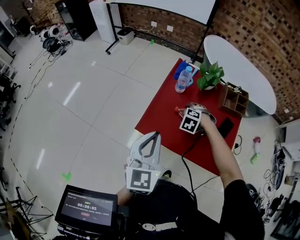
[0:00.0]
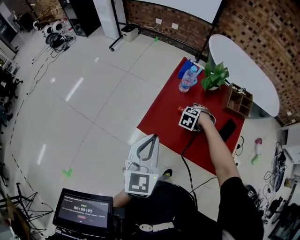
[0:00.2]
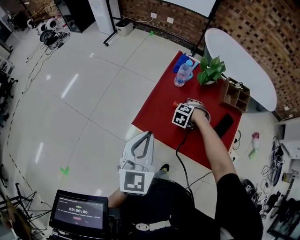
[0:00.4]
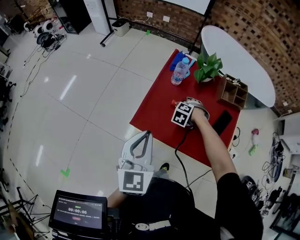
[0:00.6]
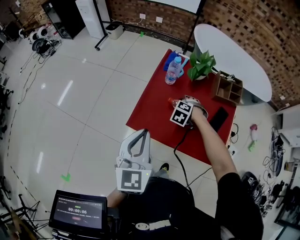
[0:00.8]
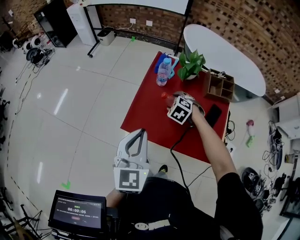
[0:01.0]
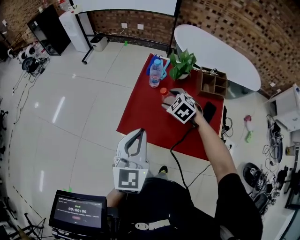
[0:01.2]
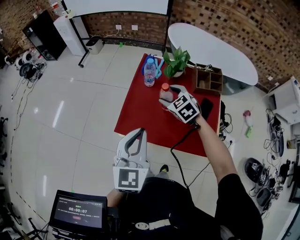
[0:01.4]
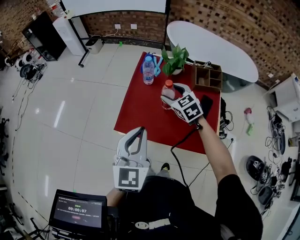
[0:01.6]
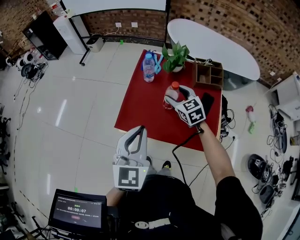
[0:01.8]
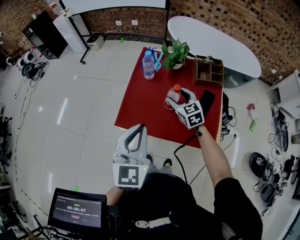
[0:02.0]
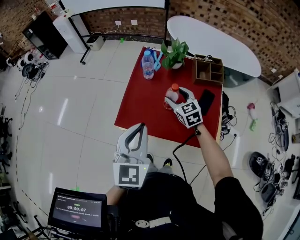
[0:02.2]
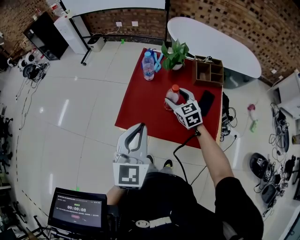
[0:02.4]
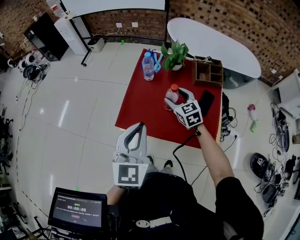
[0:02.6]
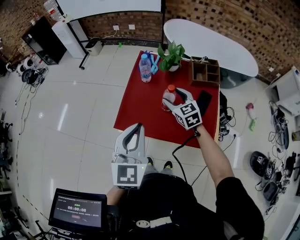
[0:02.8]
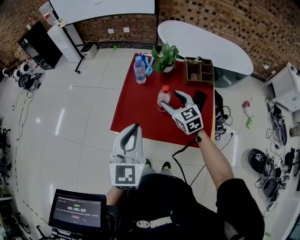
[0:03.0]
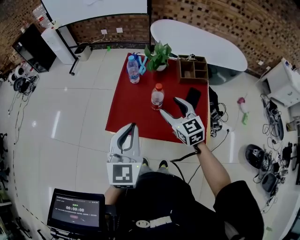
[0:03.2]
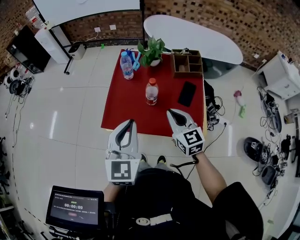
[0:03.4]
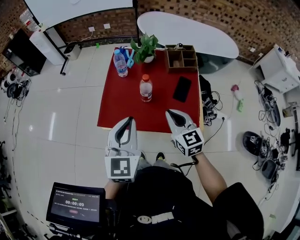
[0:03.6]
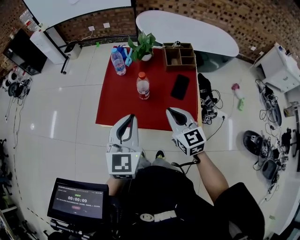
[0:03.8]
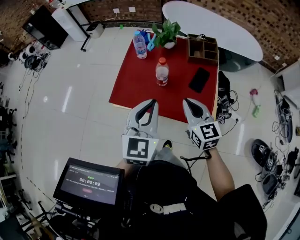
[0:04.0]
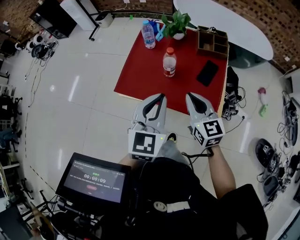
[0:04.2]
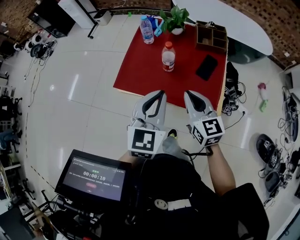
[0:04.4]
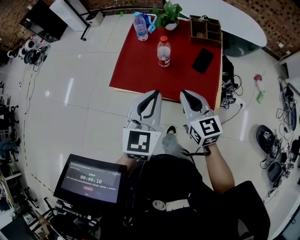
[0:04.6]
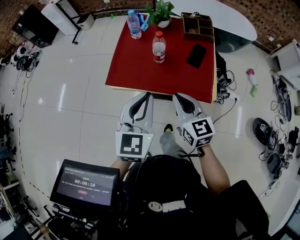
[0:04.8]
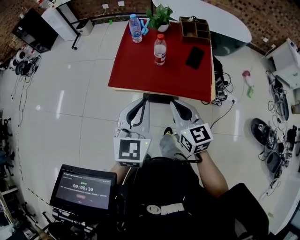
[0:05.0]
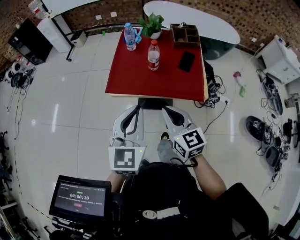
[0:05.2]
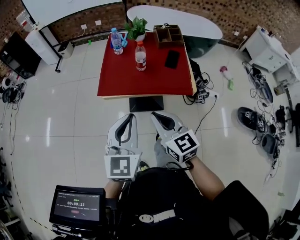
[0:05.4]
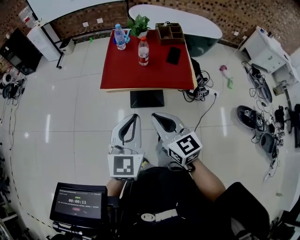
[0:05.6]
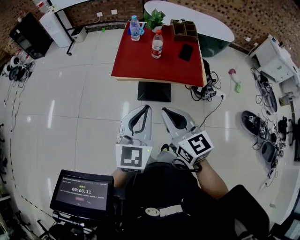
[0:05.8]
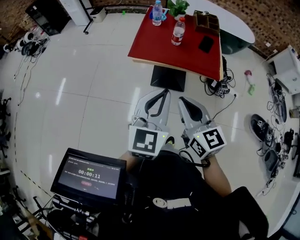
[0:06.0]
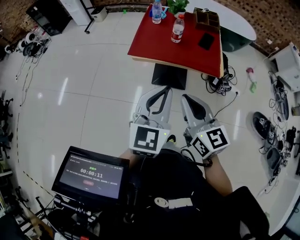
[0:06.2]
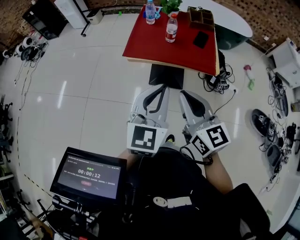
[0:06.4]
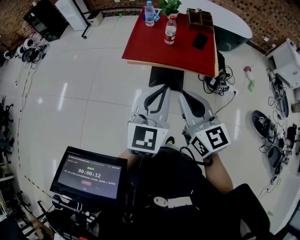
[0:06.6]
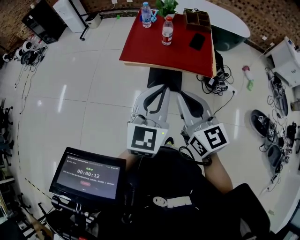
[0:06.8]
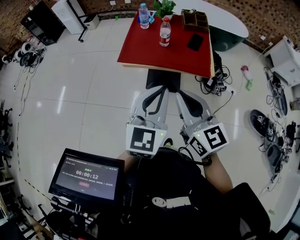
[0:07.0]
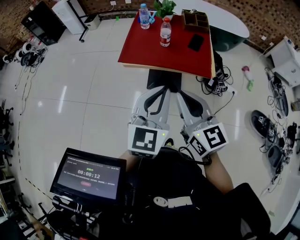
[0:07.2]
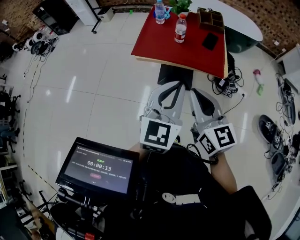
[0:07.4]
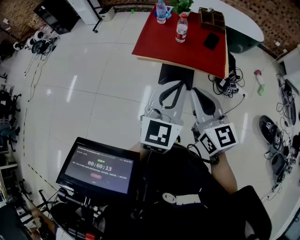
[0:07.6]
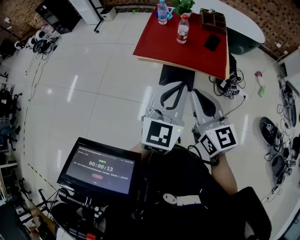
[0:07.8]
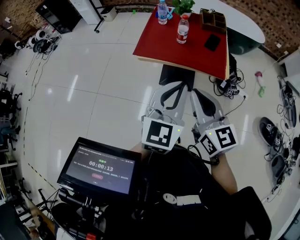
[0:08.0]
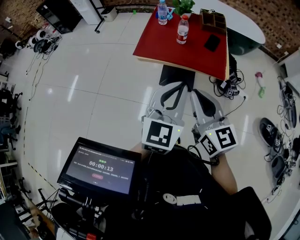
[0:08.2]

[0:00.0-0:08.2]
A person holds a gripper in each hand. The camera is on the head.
0.0 to 1.6 s: The right gripper goes approximately 15 cm upward, and angles its fingers upward, by approximately 40 degrees. Meanwhile the left gripper ends up some 5 cm from where it was.
1.6 to 3.2 s: The right gripper is displaced backward by approximately 10 cm, and changes its angle by about 20 degrees.
3.2 to 5.0 s: The left gripper heads backward, covering some 15 cm, while the right gripper shifts some 20 cm backward, and closes.
5.0 to 6.6 s: The right gripper moves backward and upward, some 20 cm. The left gripper goes about 15 cm backward.
6.6 to 8.2 s: There are only small adjustments of the grippers.

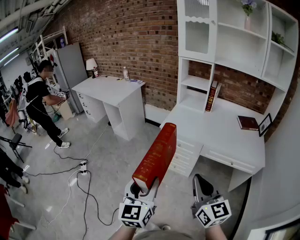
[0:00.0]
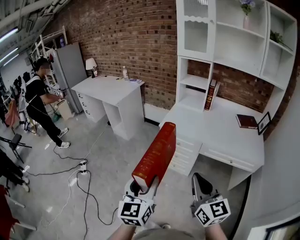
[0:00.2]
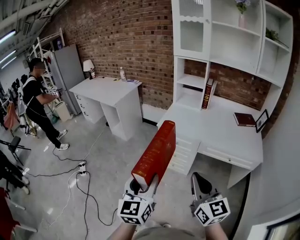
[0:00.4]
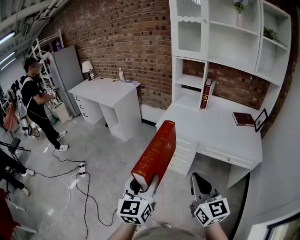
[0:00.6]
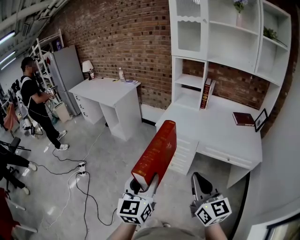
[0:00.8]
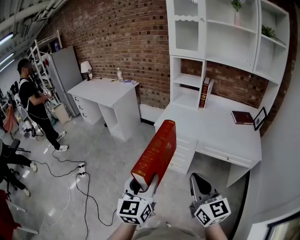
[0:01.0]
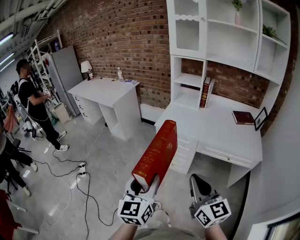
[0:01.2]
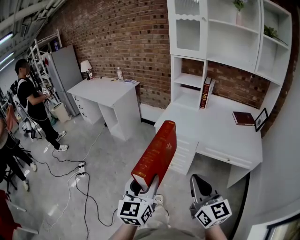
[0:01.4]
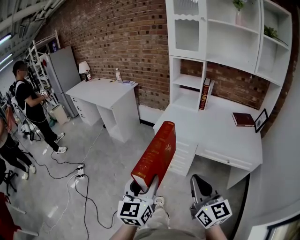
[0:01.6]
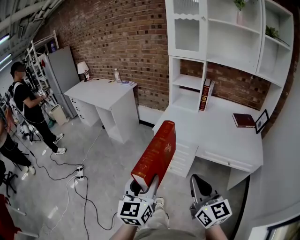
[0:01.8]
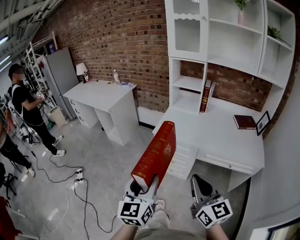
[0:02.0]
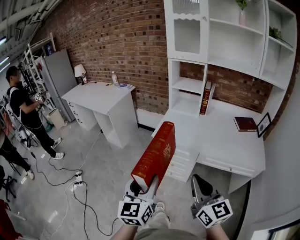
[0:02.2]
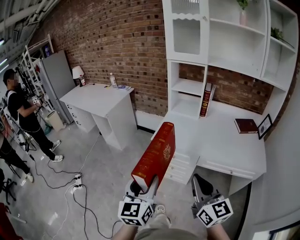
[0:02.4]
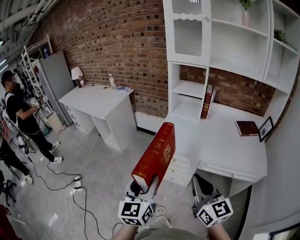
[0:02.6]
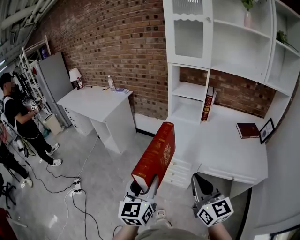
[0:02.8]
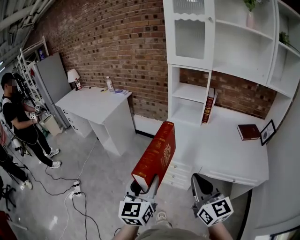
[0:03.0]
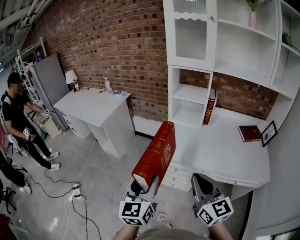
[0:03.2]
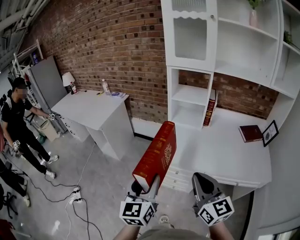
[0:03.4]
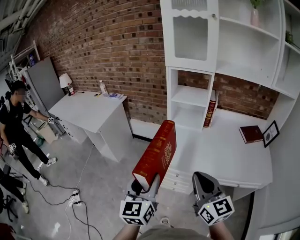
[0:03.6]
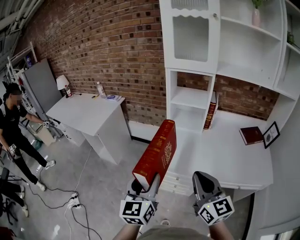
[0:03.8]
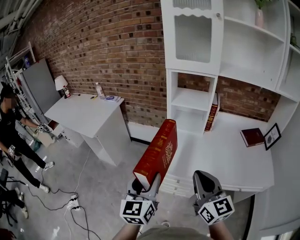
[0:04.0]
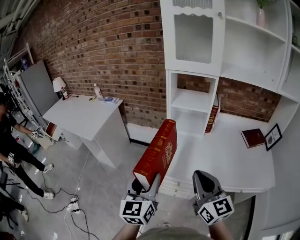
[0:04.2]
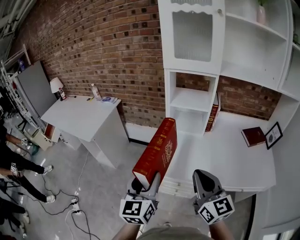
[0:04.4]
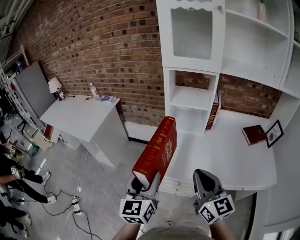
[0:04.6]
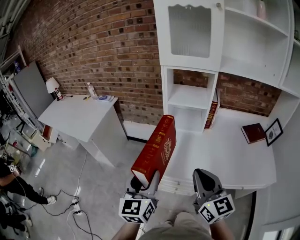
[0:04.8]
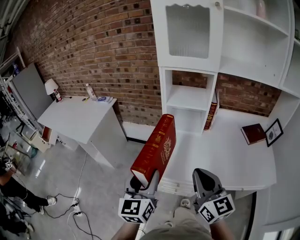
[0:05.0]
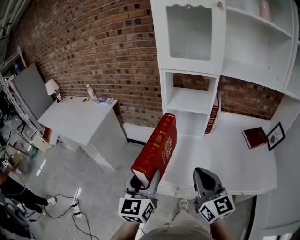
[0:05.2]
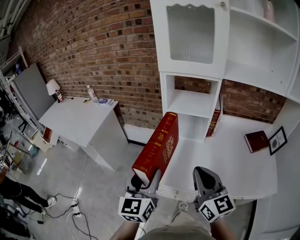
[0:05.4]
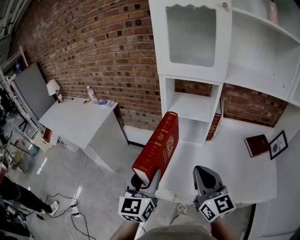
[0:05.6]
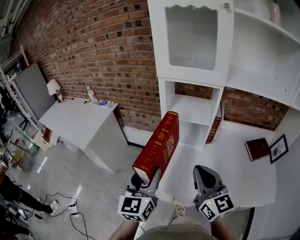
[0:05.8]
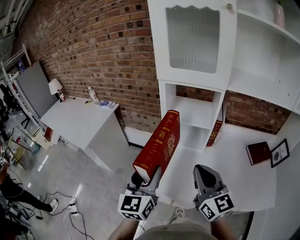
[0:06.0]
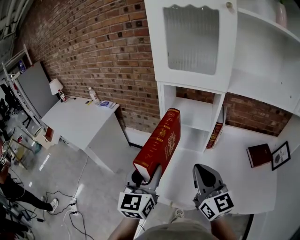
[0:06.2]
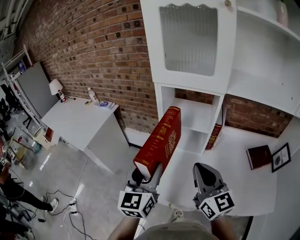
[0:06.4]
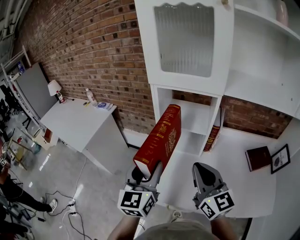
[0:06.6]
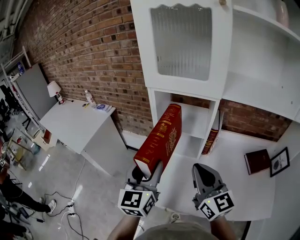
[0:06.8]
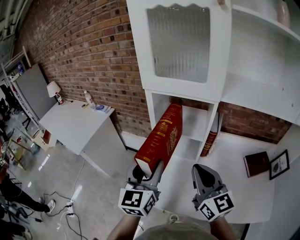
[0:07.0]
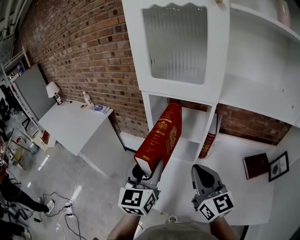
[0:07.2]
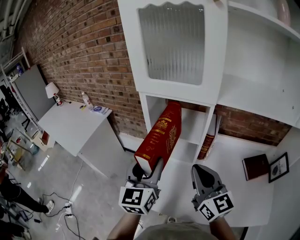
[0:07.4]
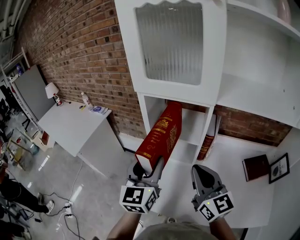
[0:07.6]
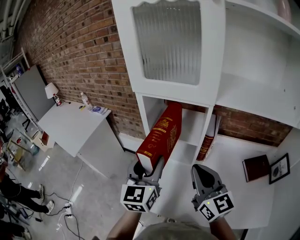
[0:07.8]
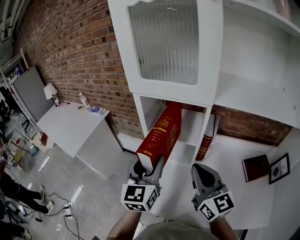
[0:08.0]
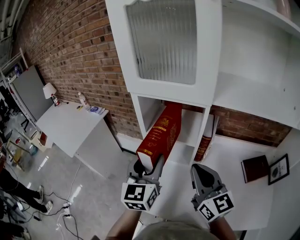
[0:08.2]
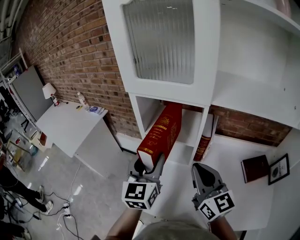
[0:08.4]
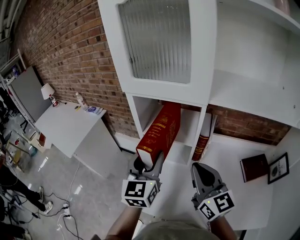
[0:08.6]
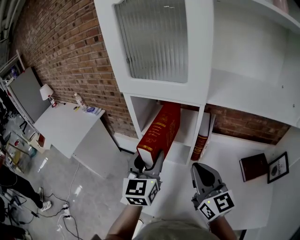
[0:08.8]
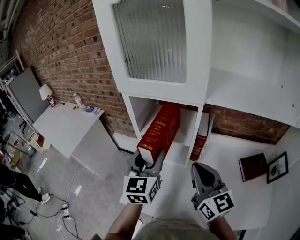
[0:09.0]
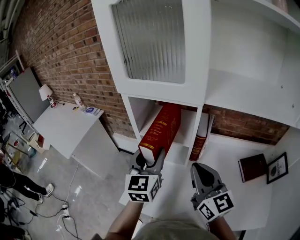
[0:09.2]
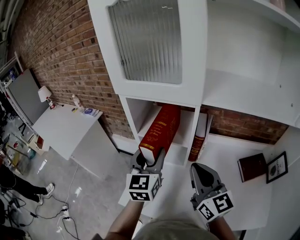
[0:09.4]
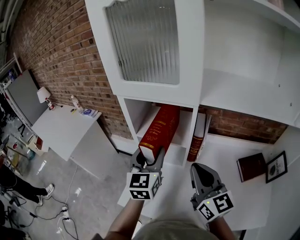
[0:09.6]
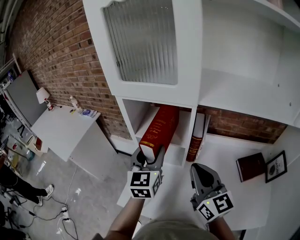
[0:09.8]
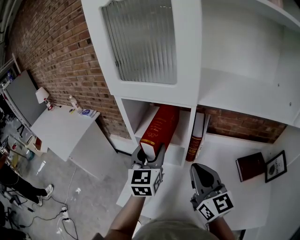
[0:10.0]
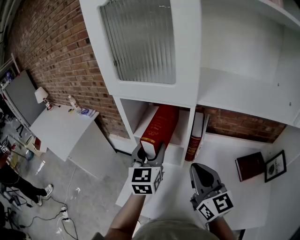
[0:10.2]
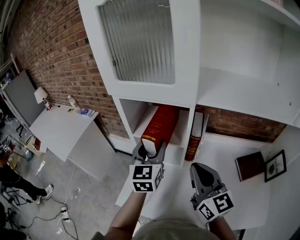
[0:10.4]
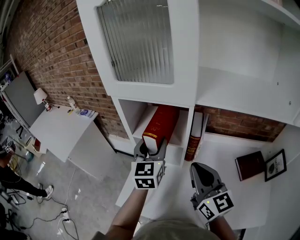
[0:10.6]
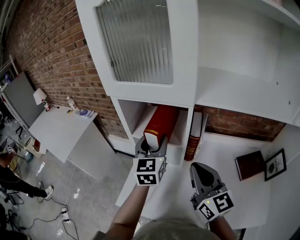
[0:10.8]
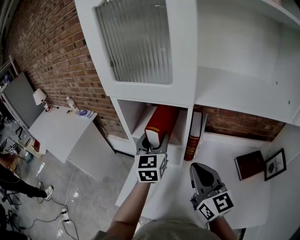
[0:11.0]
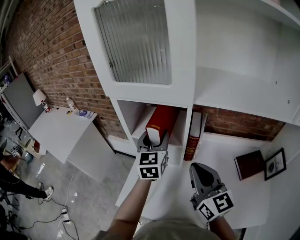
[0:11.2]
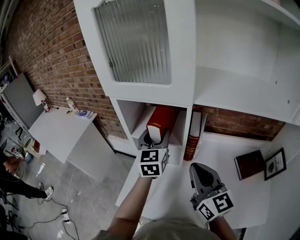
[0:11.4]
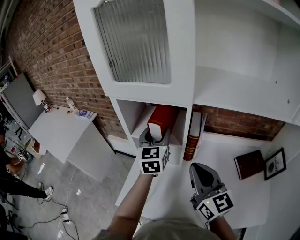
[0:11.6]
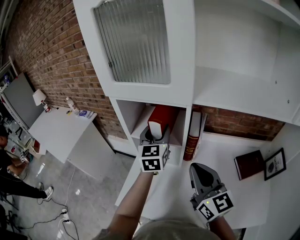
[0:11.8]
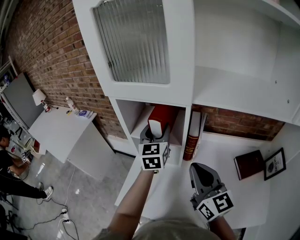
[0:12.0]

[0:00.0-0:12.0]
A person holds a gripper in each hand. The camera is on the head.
0.0 to 1.6 s: The grippers move only a little.
1.6 to 3.0 s: Both grippers move forward, about 20 cm.
3.0 to 4.4 s: The grippers both shift forward by approximately 20 cm.
4.4 to 6.0 s: Both grippers travel together forward and to the right, some 15 cm.
6.0 to 7.6 s: The left gripper moves forward and to the right, roughly 15 cm. Meanwhile the right gripper goes approximately 10 cm to the right and forward.
7.6 to 9.0 s: The left gripper is displaced to the right by approximately 5 cm. Meanwhile the right gripper moves approximately 5 cm.
9.0 to 10.4 s: The left gripper shifts by approximately 5 cm.
10.4 to 12.0 s: The left gripper travels forward by some 5 cm.

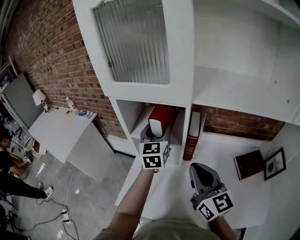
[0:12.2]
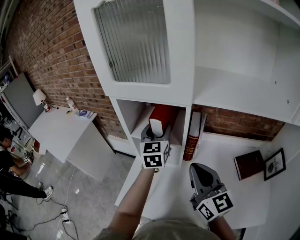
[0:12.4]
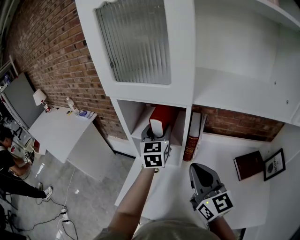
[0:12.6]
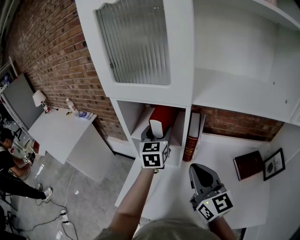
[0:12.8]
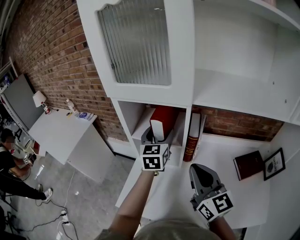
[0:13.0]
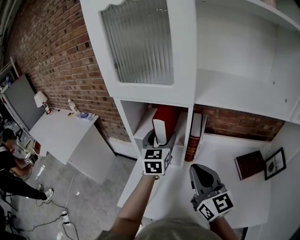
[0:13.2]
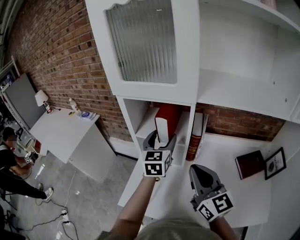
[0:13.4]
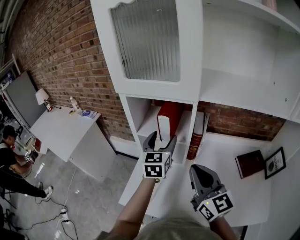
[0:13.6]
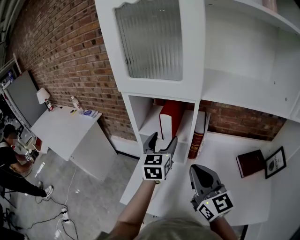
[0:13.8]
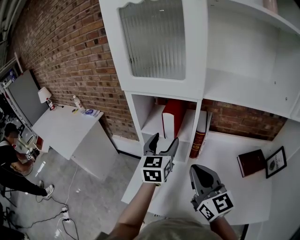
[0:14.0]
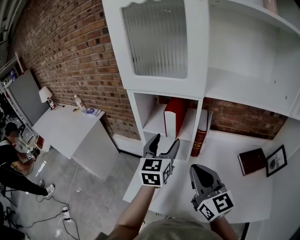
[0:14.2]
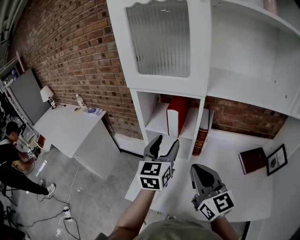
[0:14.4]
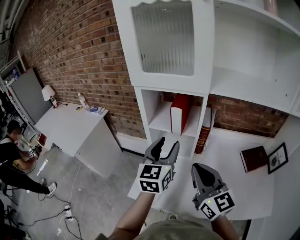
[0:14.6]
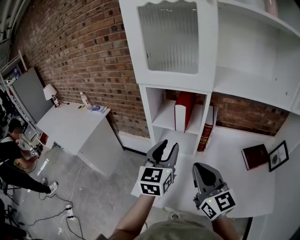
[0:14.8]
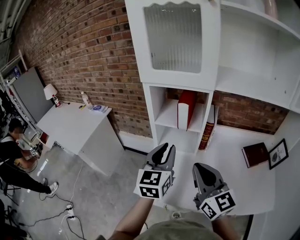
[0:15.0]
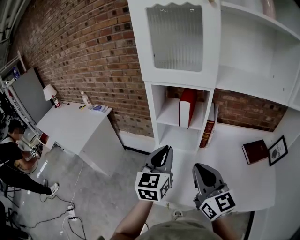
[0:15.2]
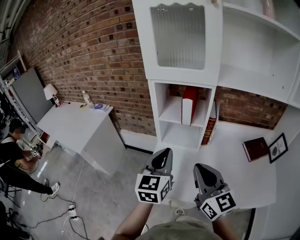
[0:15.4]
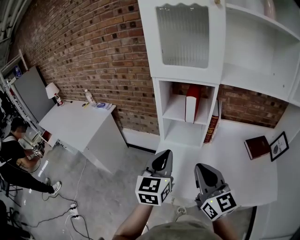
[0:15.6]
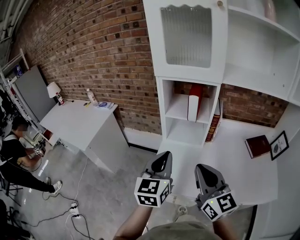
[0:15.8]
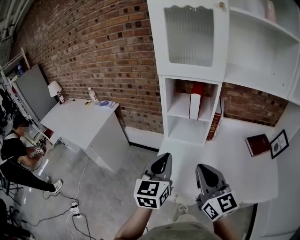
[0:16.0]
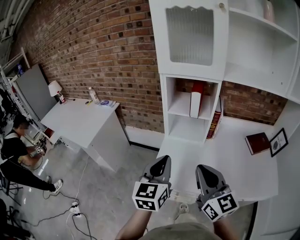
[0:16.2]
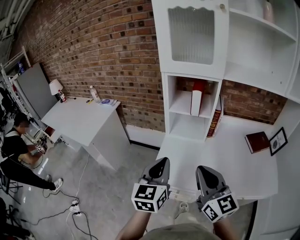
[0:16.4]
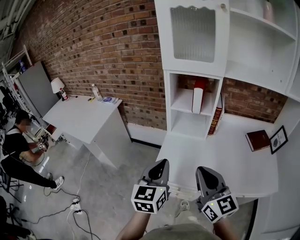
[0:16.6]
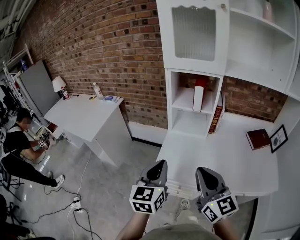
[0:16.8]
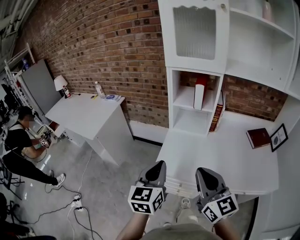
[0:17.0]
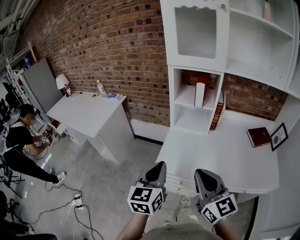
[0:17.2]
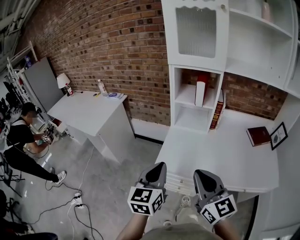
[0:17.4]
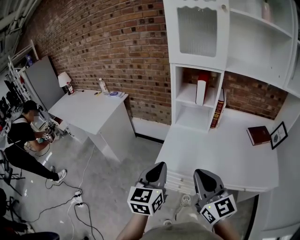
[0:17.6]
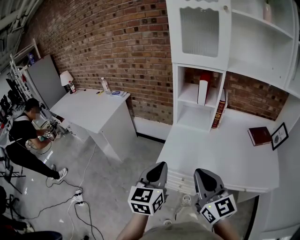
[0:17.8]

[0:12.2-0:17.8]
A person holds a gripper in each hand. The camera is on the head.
12.2 to 13.6 s: The left gripper moves backward, some 5 cm.
13.6 to 15.0 s: The right gripper moves to the left and backward, roughly 10 cm, while the left gripper heads backward and to the left, covering roughly 15 cm, and closes up.
15.0 to 16.4 s: Both grippers move backward and to the left, roughly 15 cm.
16.4 to 17.8 s: Both grippers move backward, roughly 10 cm.
